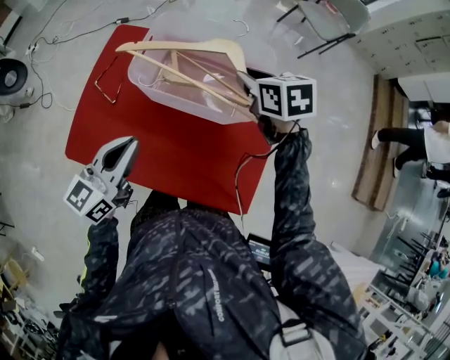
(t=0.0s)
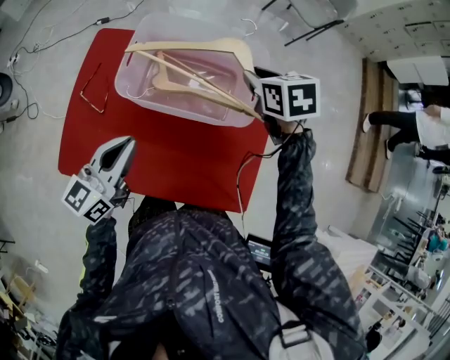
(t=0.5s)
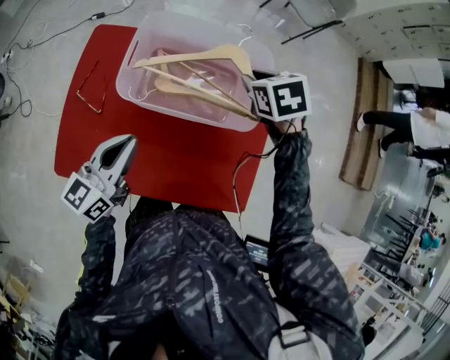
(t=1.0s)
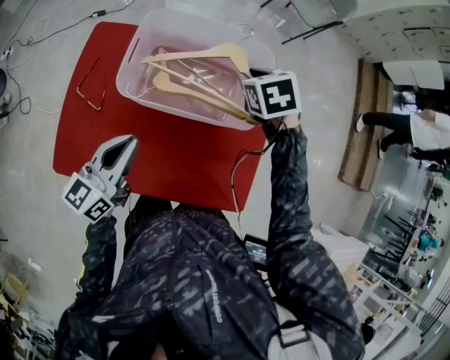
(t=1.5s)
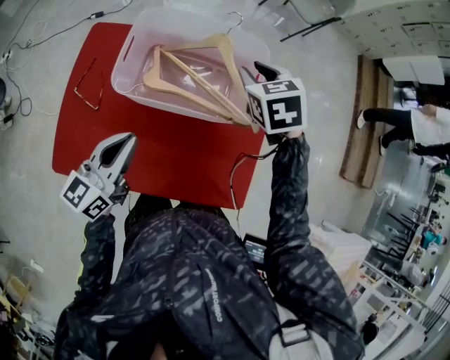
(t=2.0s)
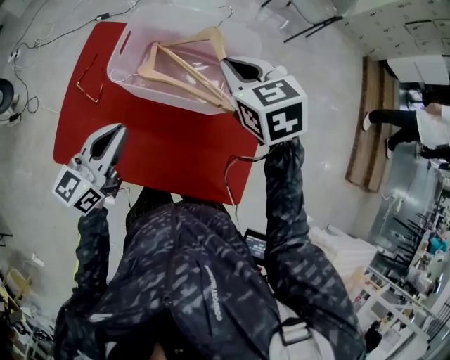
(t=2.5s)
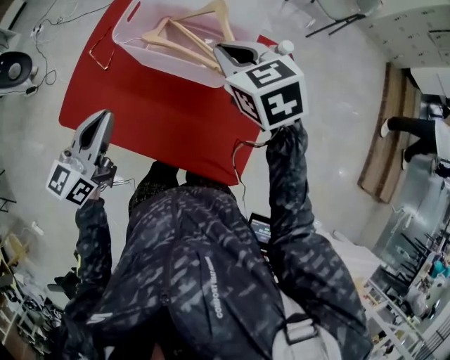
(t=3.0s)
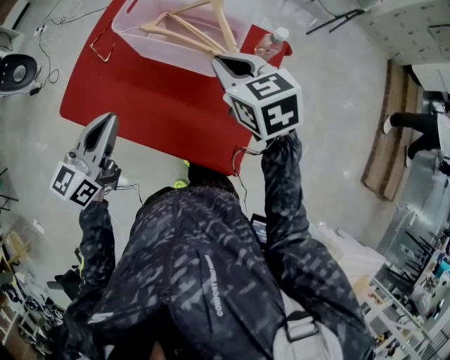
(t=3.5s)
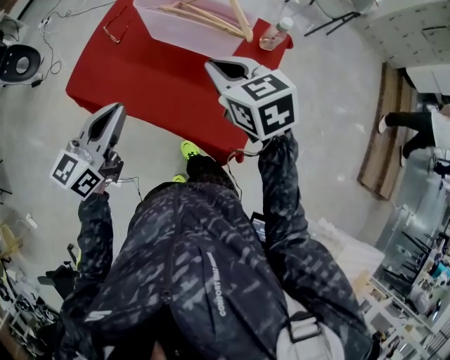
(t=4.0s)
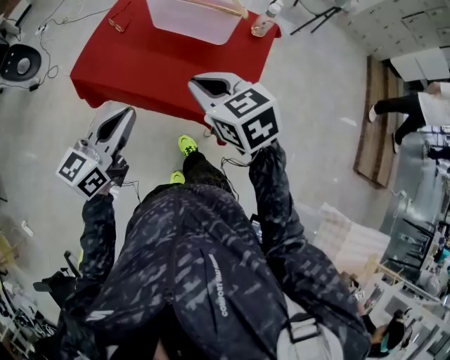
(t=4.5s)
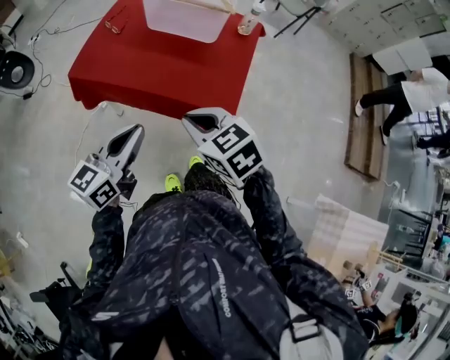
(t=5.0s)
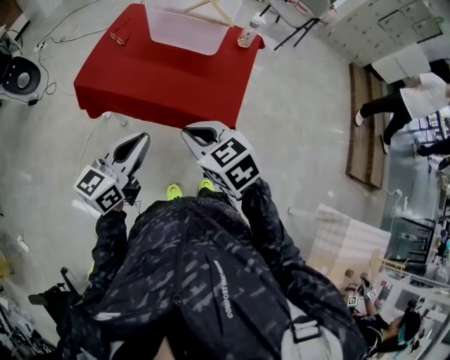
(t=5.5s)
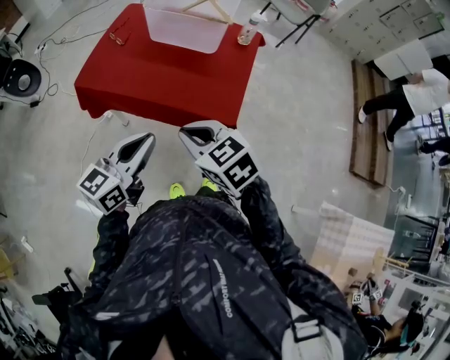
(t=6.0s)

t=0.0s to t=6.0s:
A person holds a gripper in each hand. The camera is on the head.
t=0.0s to t=2.0s: The right gripper turns by approximately 20 degrees, while the left gripper moves forward, approximately 5 cm.
t=2.0s to t=4.0s: The right gripper changes place by about 30 cm, changes its angle by about 30 degrees, and closes its fingers, while the left gripper moves roughly 25 cm.
t=4.0s to t=6.0s: Both grippers travel together backward, about 30 cm.

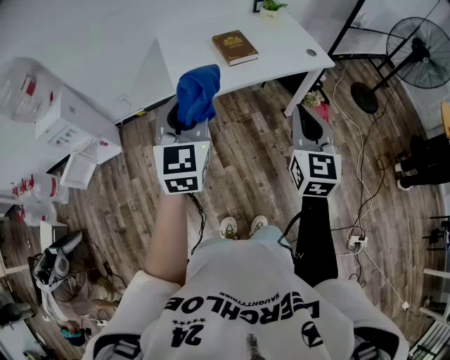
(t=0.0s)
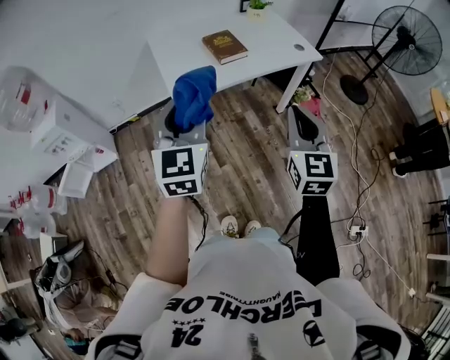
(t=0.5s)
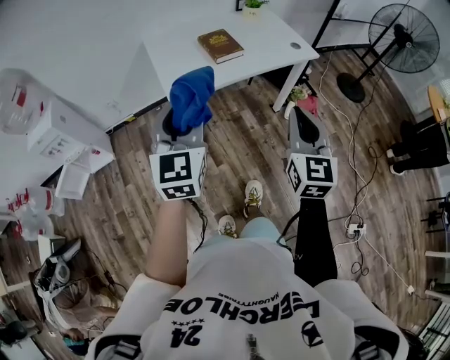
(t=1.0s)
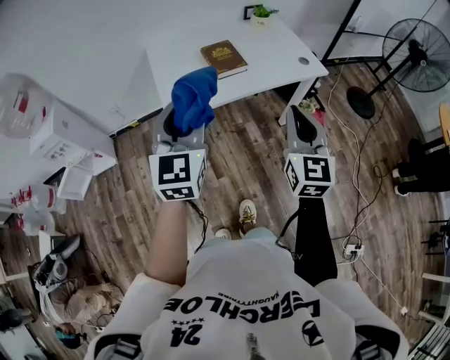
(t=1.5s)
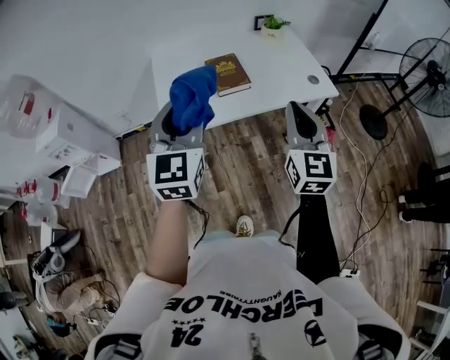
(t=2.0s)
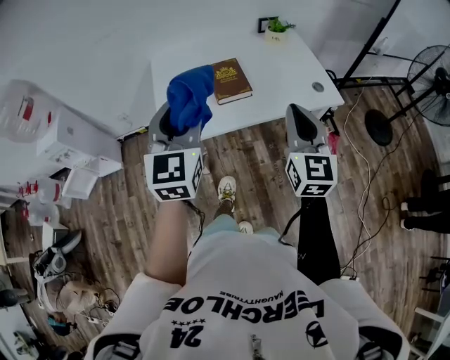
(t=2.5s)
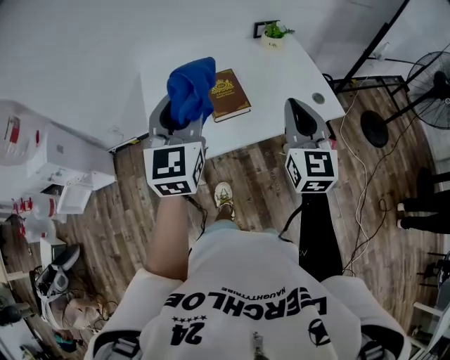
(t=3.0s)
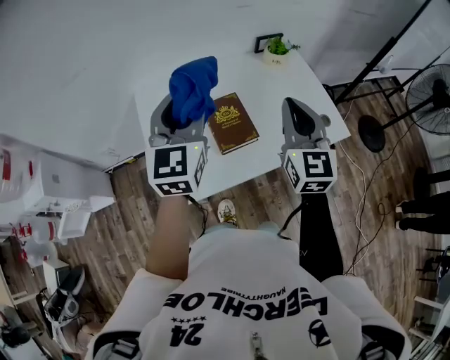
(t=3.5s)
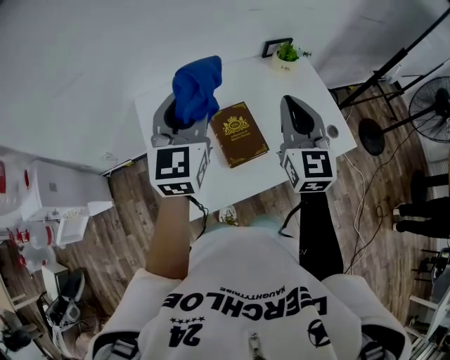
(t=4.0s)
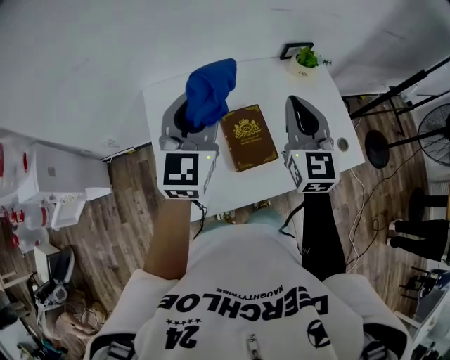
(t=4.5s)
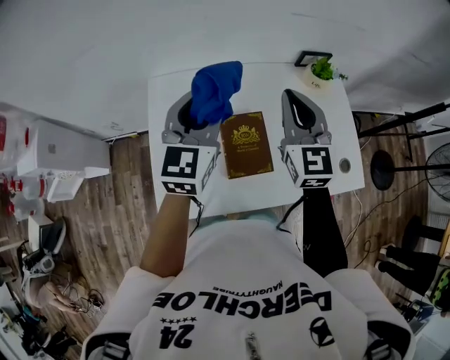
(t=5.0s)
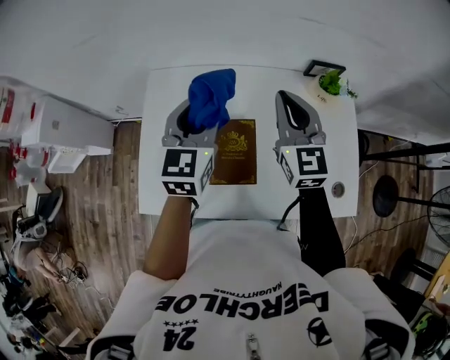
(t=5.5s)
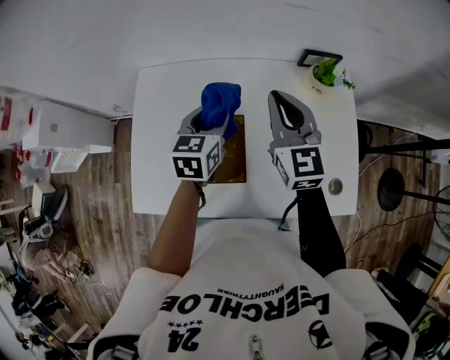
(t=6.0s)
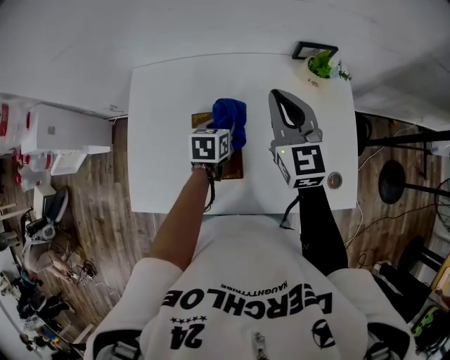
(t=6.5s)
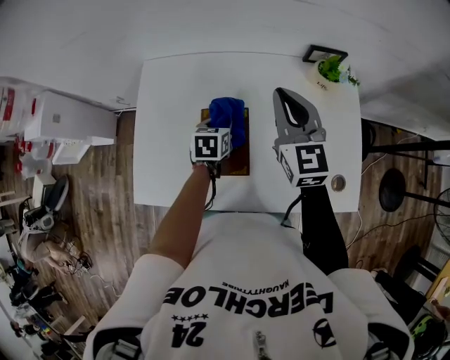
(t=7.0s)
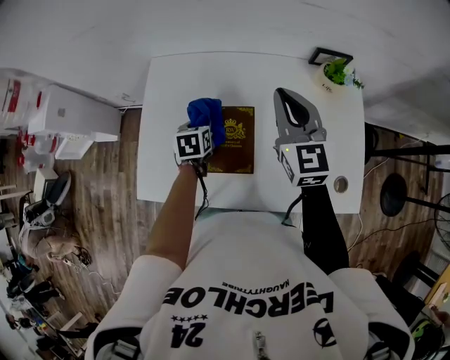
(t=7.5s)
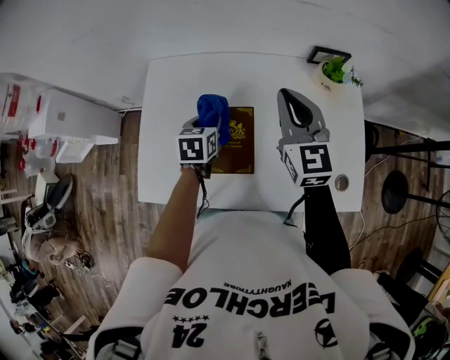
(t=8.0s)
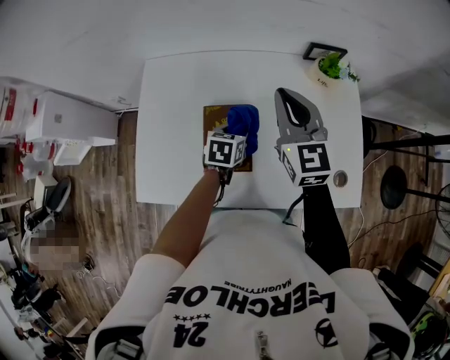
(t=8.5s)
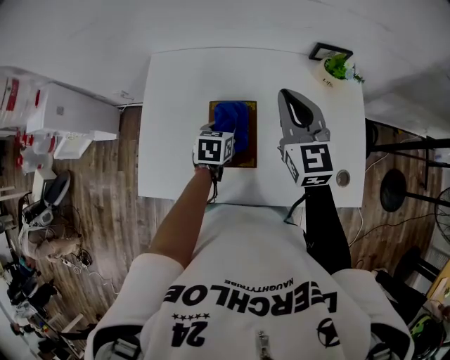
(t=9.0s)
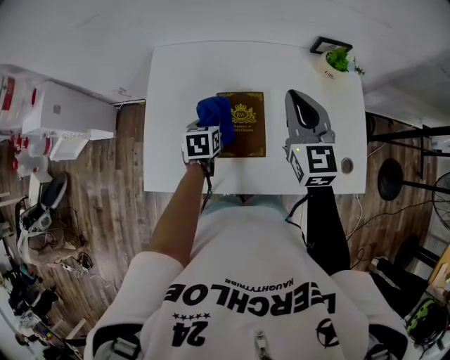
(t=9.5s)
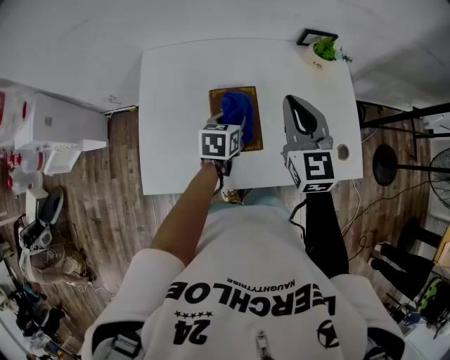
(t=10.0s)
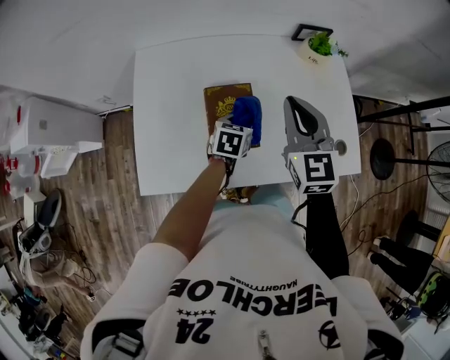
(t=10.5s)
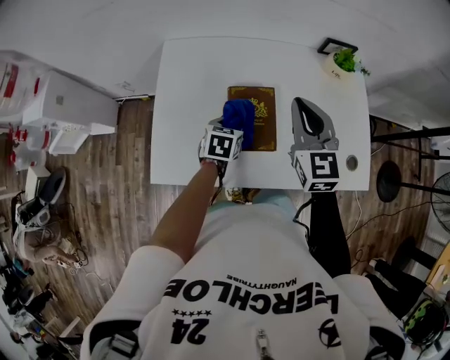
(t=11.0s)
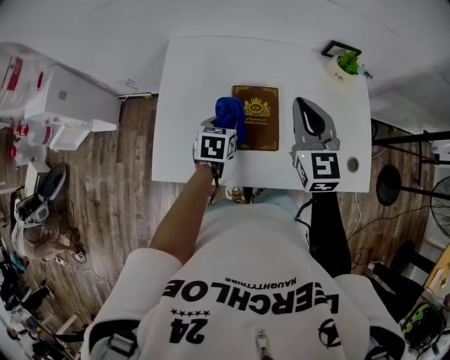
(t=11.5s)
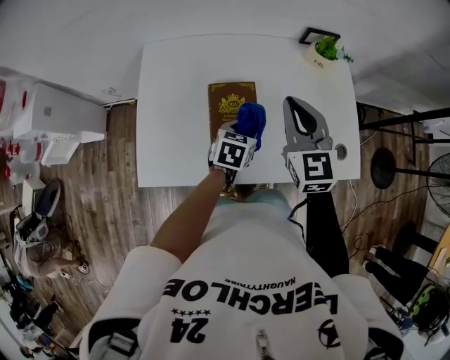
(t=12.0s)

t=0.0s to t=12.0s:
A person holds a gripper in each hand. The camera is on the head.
t=0.0s to t=2.0s: The left gripper goes some 15 cm forward and to the right; the right gripper travels forward by roughly 20 cm.
t=2.0s to t=4.0s: The grippers both shift forward by roughly 35 cm.
t=4.0s to t=6.0s: The right gripper shifts approximately 20 cm forward and downward, and changes its angle by roughly 30 degrees. Meanwhile the left gripper heads downward, forward and to the right, covering approximately 25 cm, and changes its angle by some 40 degrees.
t=6.0s to t=8.0s: The left gripper heads downward and to the left, covering approximately 10 cm.
t=8.0s to t=10.0s: The right gripper travels backward by some 10 cm. Meanwhile the left gripper swings left and right, some 15 cm each way, with 2 reversals.
t=10.0s to t=12.0s: The left gripper moves left and right over about 15 cm, changing direction 2 times.

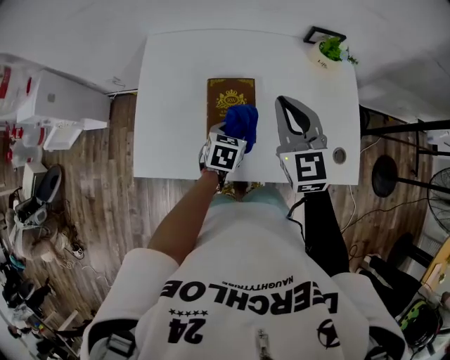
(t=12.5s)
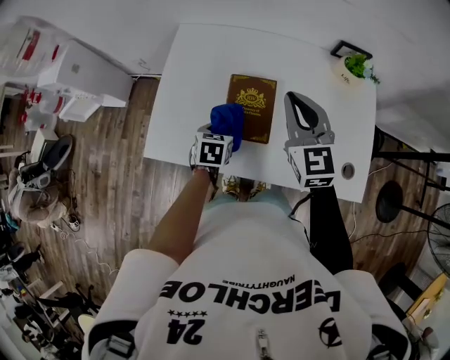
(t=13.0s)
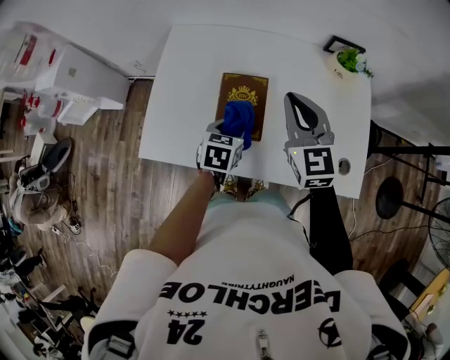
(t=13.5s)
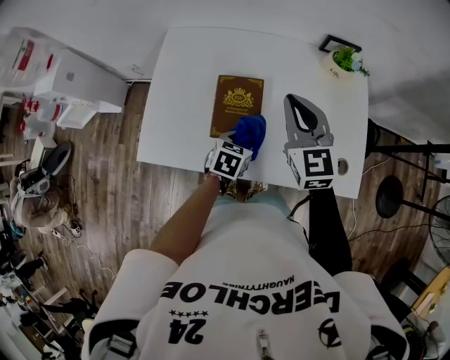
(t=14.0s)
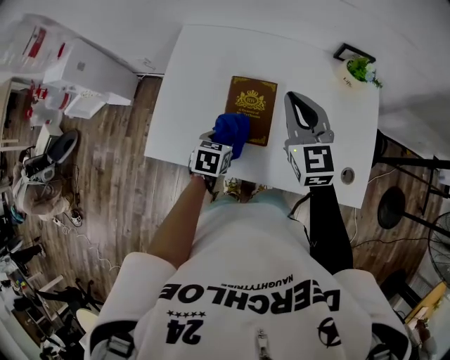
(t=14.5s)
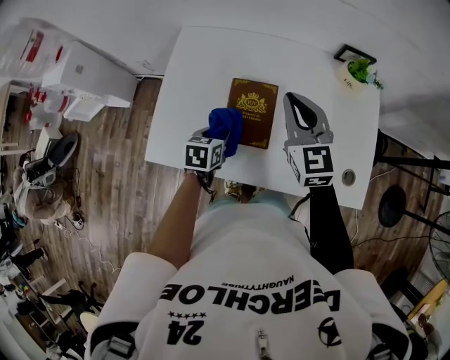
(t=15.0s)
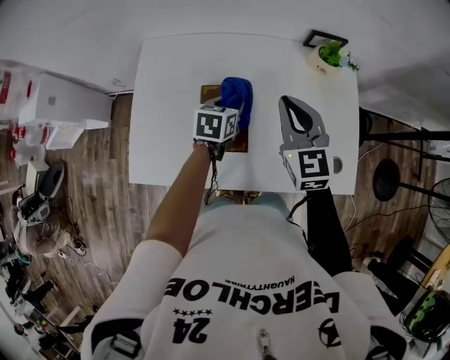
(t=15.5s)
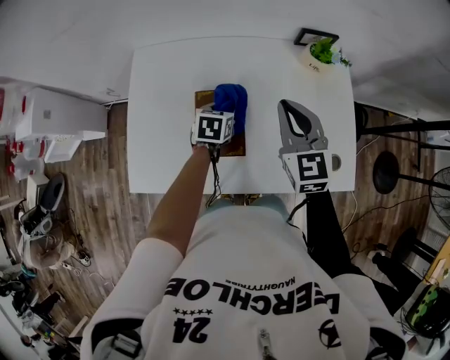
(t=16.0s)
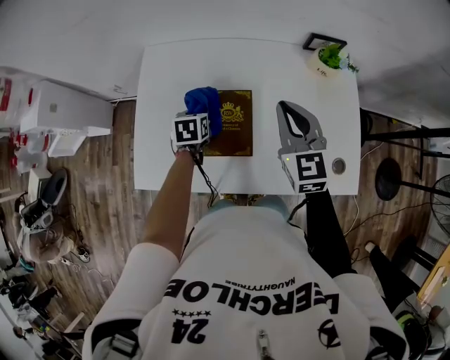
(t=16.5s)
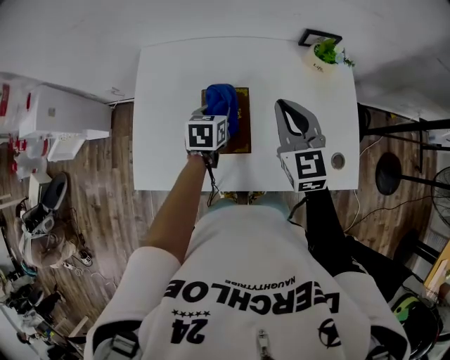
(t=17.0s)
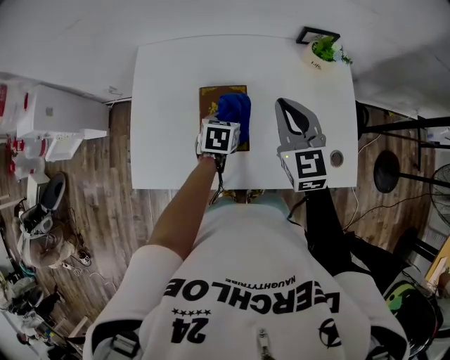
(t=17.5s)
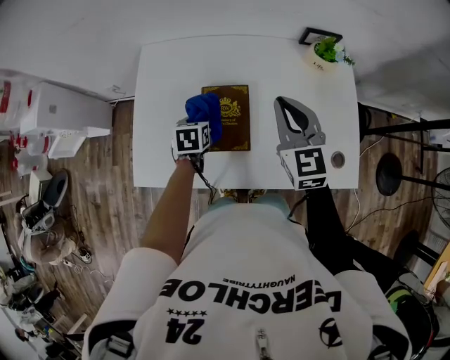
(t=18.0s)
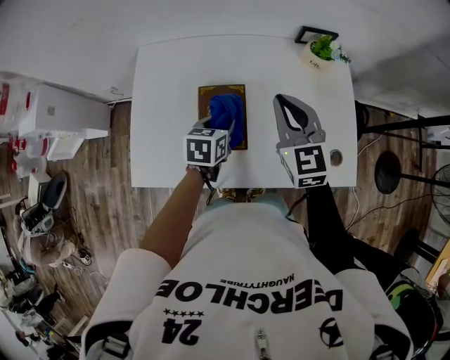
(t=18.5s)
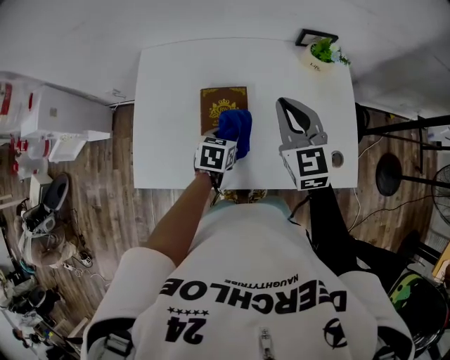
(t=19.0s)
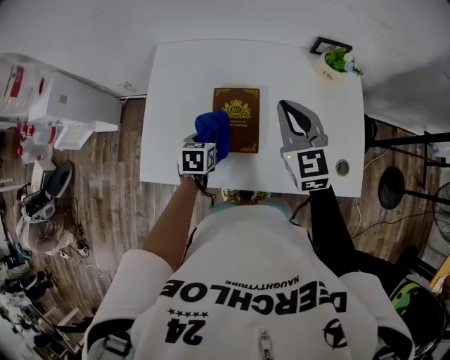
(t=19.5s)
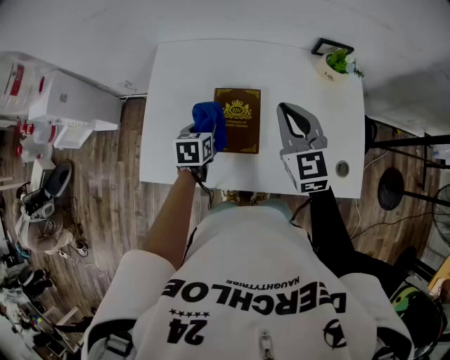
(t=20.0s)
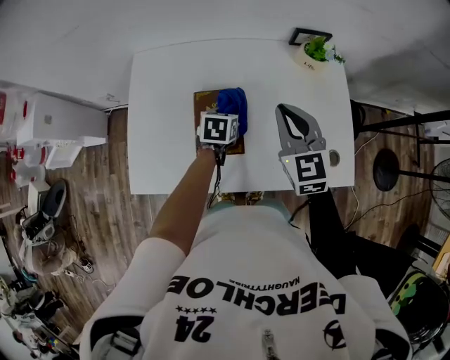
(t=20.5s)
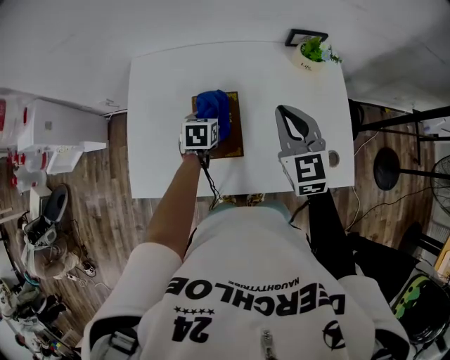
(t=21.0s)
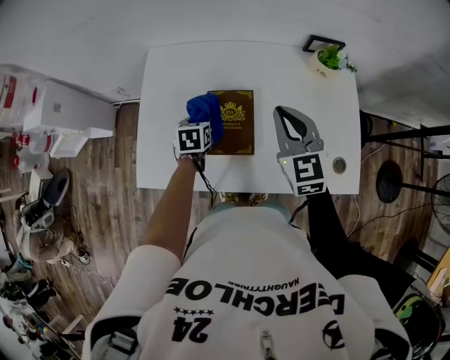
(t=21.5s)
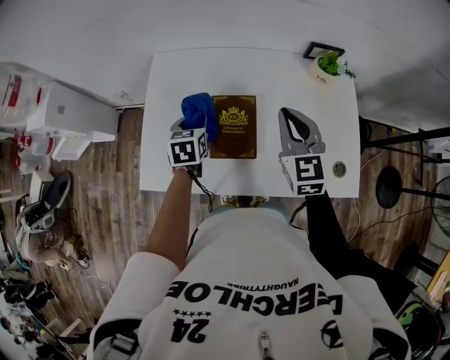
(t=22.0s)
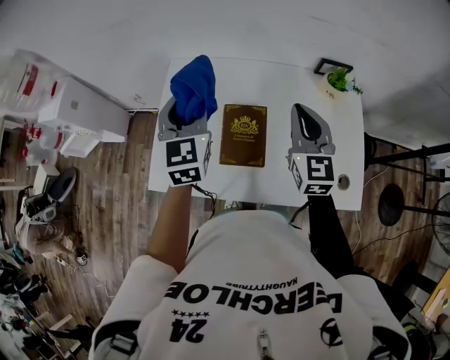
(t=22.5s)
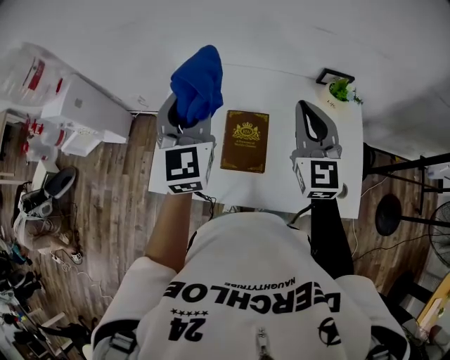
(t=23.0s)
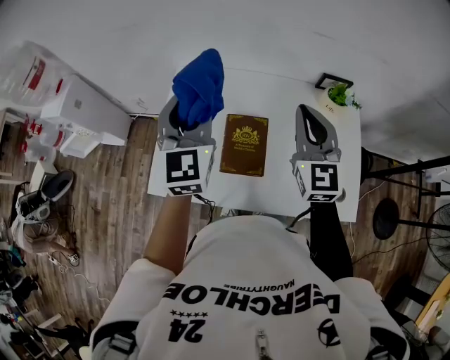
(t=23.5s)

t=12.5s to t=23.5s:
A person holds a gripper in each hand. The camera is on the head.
t=12.5s to t=14.5s: The left gripper goes left and right, about 10 cm each way, reversing 2 times.
t=14.5s to t=16.0s: The right gripper goes about 5 cm to the right. The left gripper shifts about 15 cm forward and to the right.
t=16.0s to t=18.0s: The left gripper moves left and right over about 10 cm, changing direction 2 times.
t=18.0s to t=20.0s: The left gripper moves about 10 cm to the right and comes back.
t=20.0s to t=21.5s: The left gripper reaches some 15 cm to the right, then returns.
t=21.5s to t=23.5s: The right gripper goes some 10 cm upward; the left gripper travels upward by about 35 cm, and tips its fingers upward by about 50 degrees.
